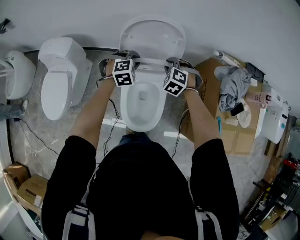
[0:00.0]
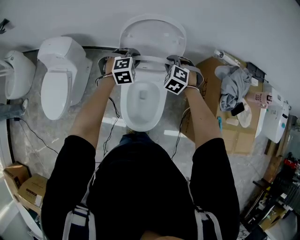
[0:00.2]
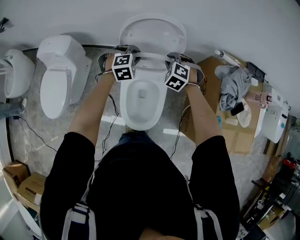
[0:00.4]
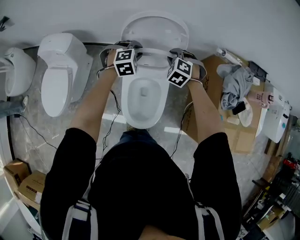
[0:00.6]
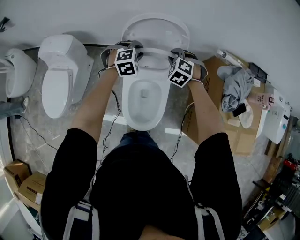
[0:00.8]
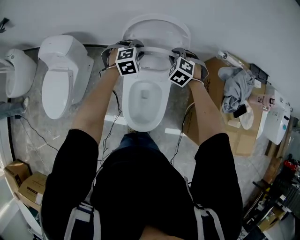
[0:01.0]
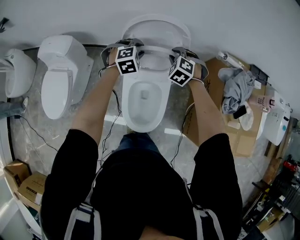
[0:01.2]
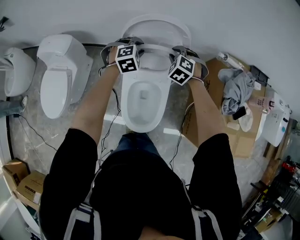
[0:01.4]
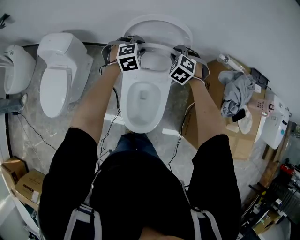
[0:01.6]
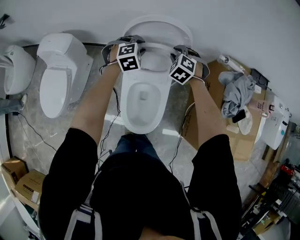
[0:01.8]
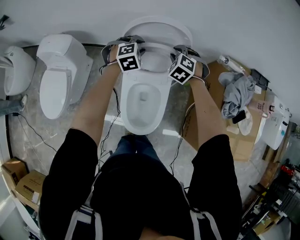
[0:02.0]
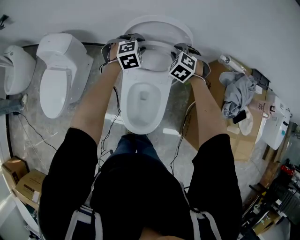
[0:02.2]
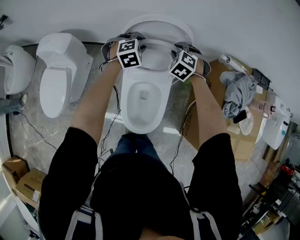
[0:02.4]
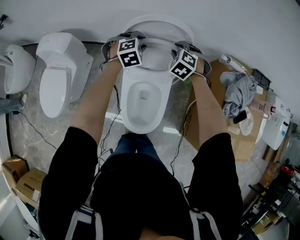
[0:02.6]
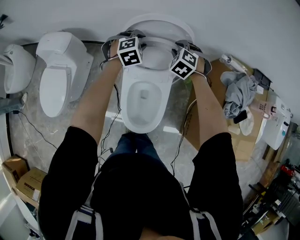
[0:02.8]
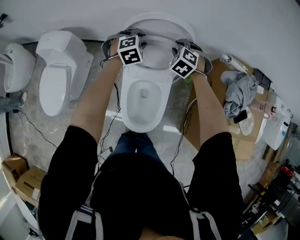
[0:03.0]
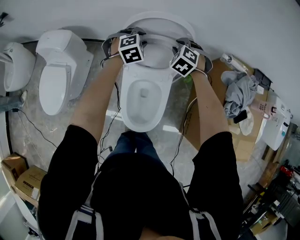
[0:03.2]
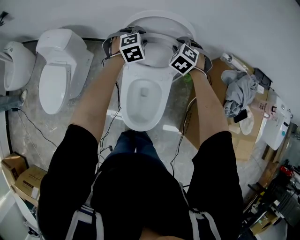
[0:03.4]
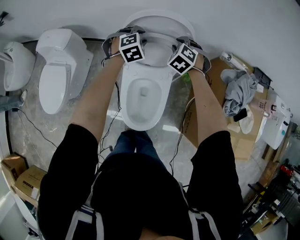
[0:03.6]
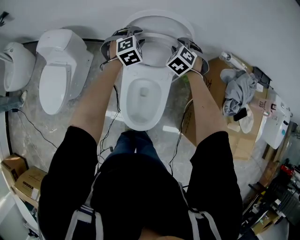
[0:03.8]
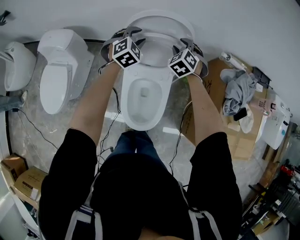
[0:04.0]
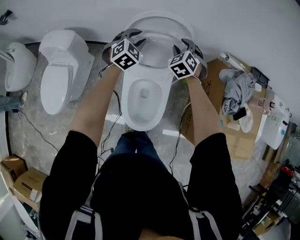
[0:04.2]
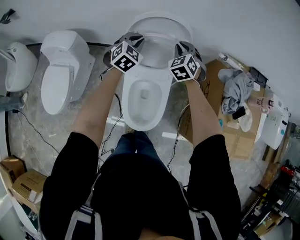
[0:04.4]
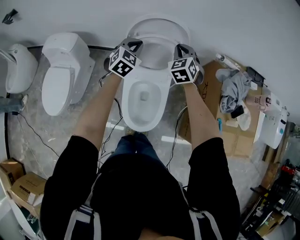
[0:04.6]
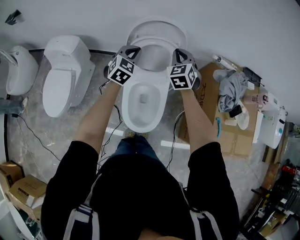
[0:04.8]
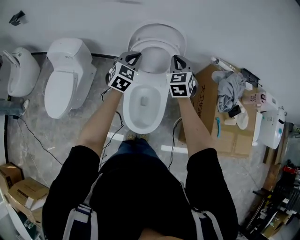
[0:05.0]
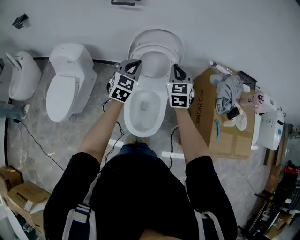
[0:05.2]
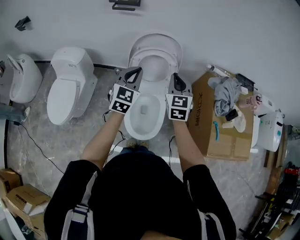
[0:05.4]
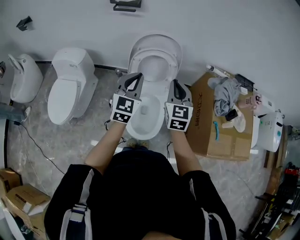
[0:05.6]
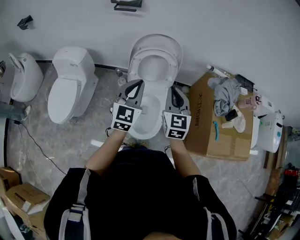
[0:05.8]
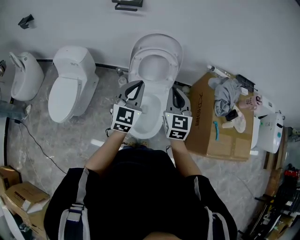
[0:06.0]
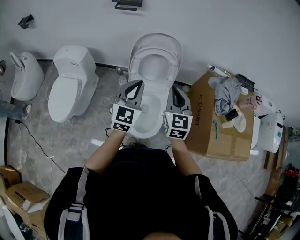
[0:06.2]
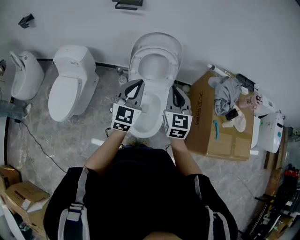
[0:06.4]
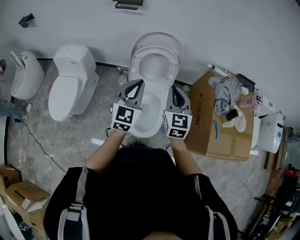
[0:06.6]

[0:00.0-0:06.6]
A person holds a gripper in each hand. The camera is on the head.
0:00.0 to 0:01.6: Both grippers move forward, approximately 10 cm.
0:01.6 to 0:03.2: The grippers move only a little.
0:03.2 to 0:05.0: The grippers both shift backward and upward by approximately 20 cm. The right gripper angles its fingers upward, by roughly 30 degrees, and closes up. The left gripper tilts its fingers roughly 30 degrees upward, and closes.
0:05.0 to 0:06.6: The left gripper moves backward and upward, some 20 cm. Meanwhile the right gripper travels backward by some 15 cm, and swivels some 20 degrees.

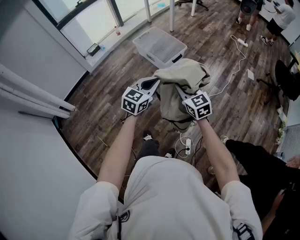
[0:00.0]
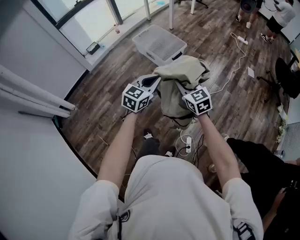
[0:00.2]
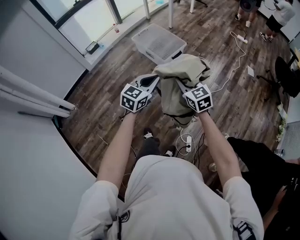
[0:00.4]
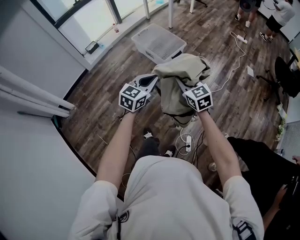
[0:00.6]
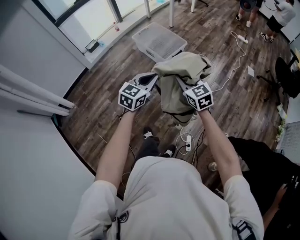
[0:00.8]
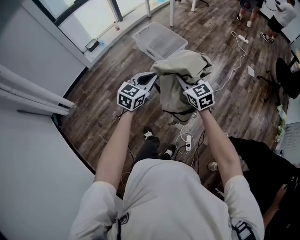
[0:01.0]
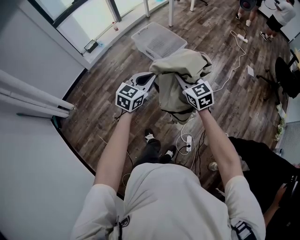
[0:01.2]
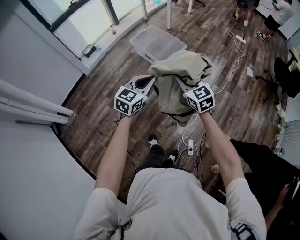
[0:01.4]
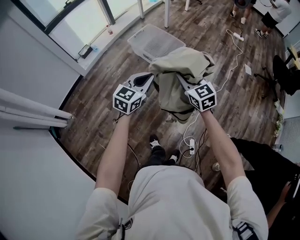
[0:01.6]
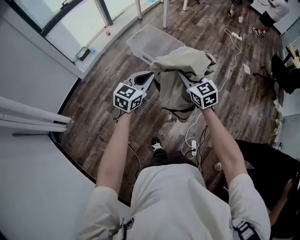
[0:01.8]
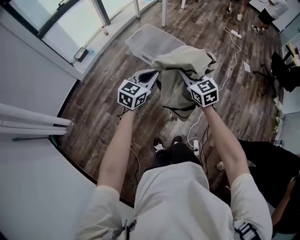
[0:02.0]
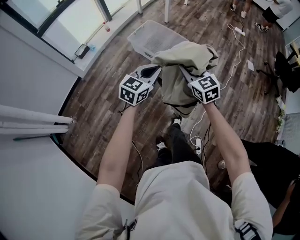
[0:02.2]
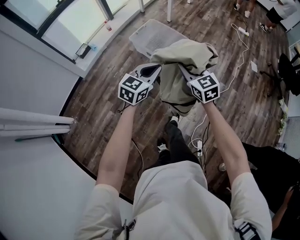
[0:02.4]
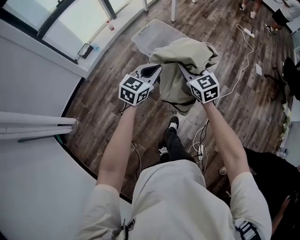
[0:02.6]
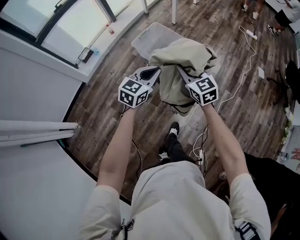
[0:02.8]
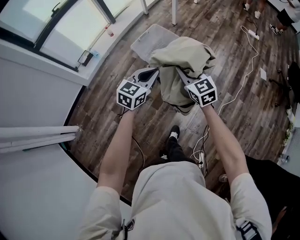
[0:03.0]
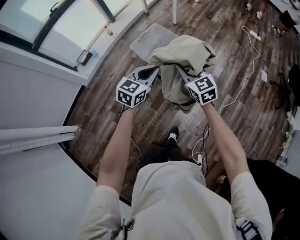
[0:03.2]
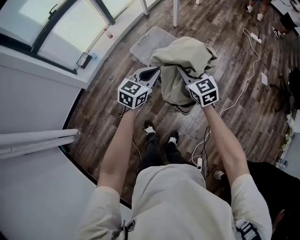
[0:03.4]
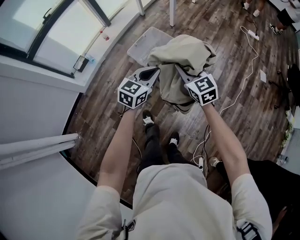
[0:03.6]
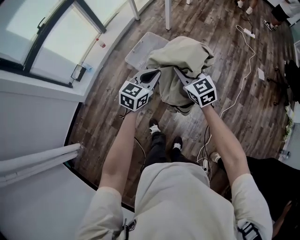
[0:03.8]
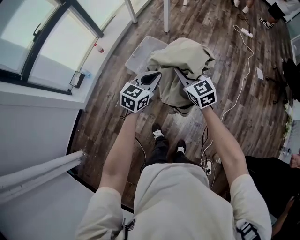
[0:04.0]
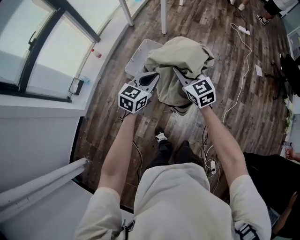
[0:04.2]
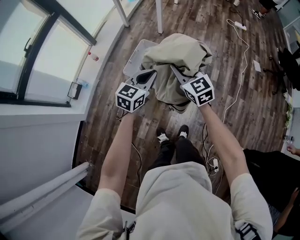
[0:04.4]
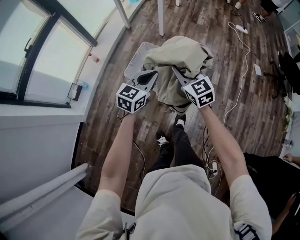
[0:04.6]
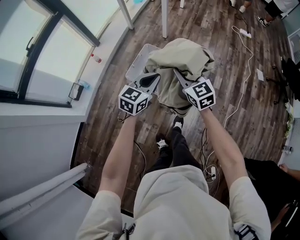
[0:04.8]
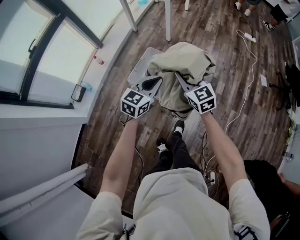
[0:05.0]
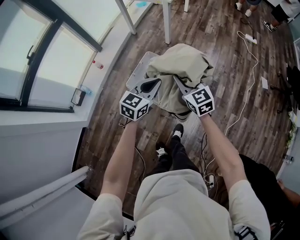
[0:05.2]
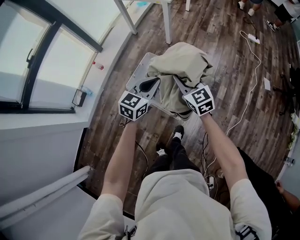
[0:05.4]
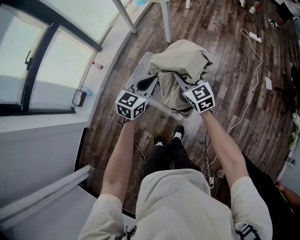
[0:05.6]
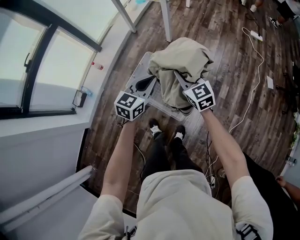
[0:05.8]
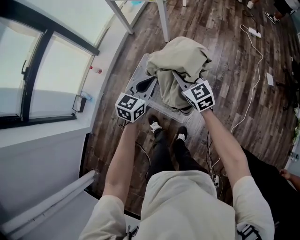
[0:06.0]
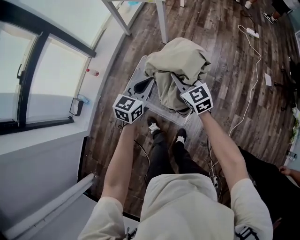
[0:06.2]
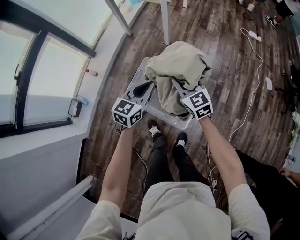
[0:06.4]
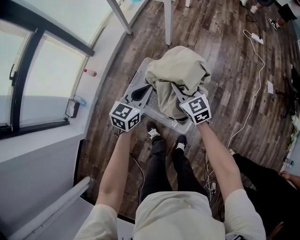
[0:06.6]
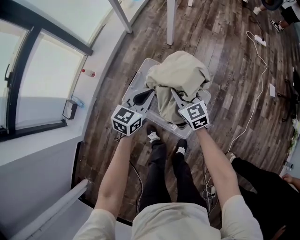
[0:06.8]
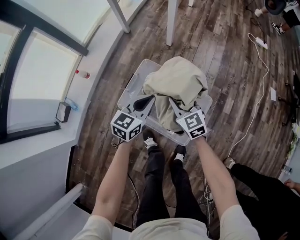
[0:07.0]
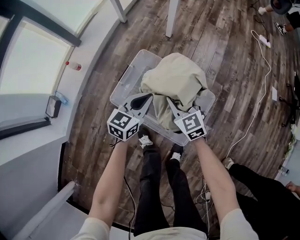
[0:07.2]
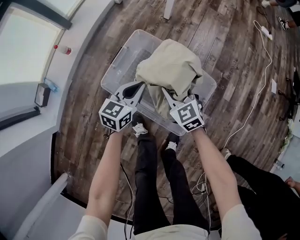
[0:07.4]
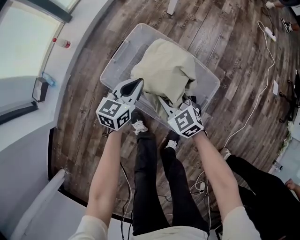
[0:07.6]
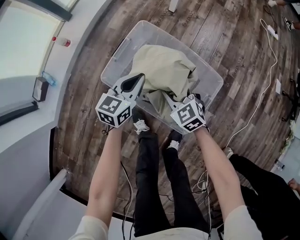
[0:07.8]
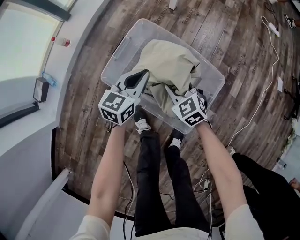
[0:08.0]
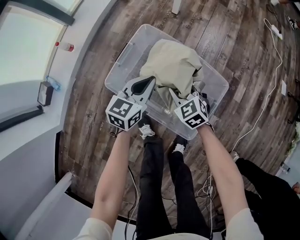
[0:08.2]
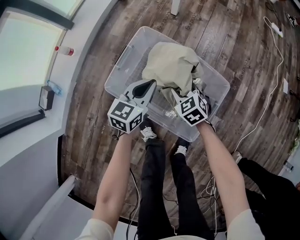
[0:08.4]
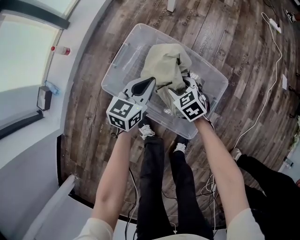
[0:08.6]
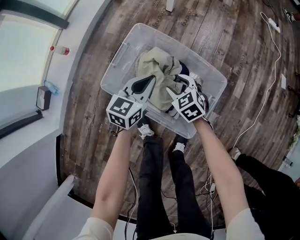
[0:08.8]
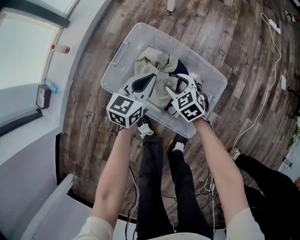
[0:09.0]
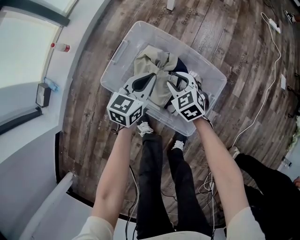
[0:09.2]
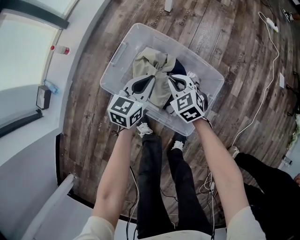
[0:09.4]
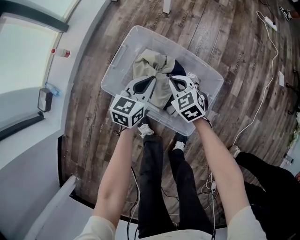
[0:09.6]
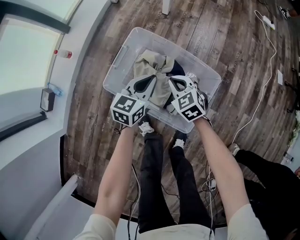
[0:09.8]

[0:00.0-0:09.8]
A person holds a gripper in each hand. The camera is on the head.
0:00.0 to 0:01.4: The right gripper travels forward by approximately 10 cm; the left gripper travels to the left and forward by approximately 10 cm.
0:01.4 to 0:02.8: The grippers both shift forward by approximately 25 cm.
0:02.8 to 0:04.2: Both grippers travel together forward, about 25 cm.
0:04.2 to 0:05.6: Both grippers travel together forward, roughly 20 cm.
0:05.6 to 0:07.0: The right gripper travels downward and to the left by about 25 cm, while the left gripper travels downward and forward by about 25 cm.
0:07.0 to 0:08.4: The grippers both shift downward by roughly 20 cm. The right gripper rotates approximately 30 degrees.
0:08.4 to 0:09.8: The right gripper travels upward by approximately 5 cm, and opens, then closes once more.

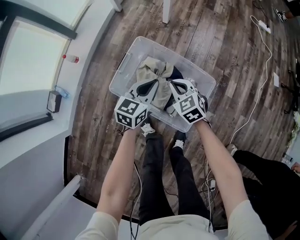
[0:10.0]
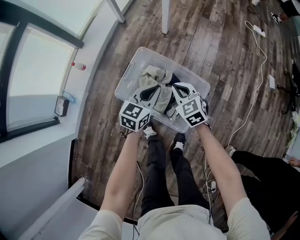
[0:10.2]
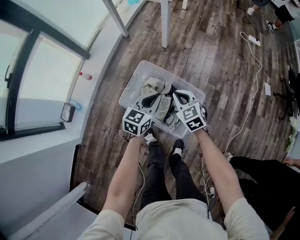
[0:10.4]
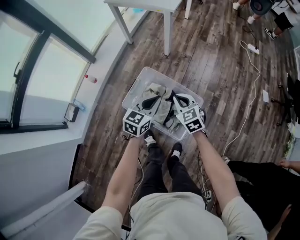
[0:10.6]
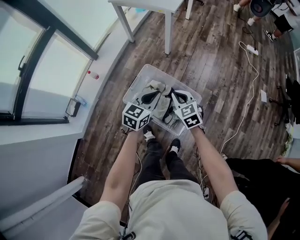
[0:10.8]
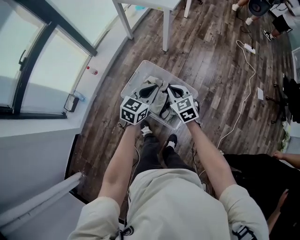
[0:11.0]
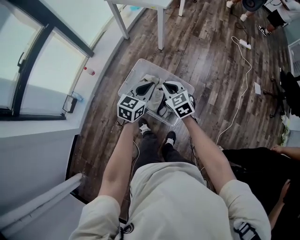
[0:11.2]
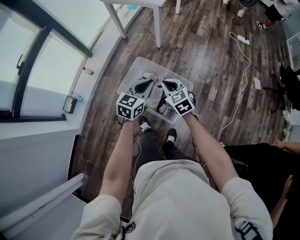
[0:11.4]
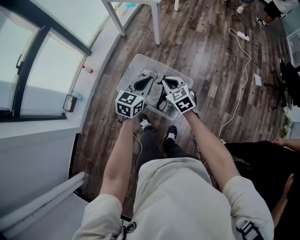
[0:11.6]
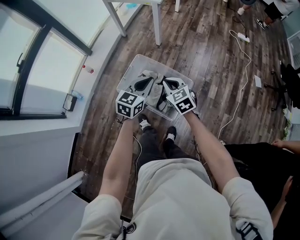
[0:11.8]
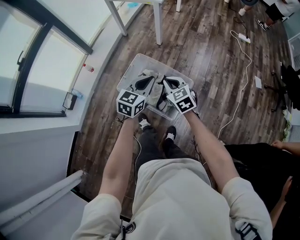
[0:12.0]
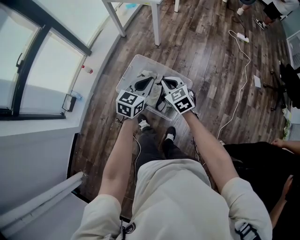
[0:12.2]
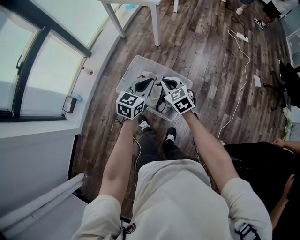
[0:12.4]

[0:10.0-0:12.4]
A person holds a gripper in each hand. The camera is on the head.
0:10.0 to 0:11.2: The two grippers go roughly 25 cm upward.
0:11.2 to 0:12.4: There are only small adjustments of the grippers.

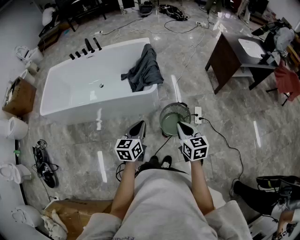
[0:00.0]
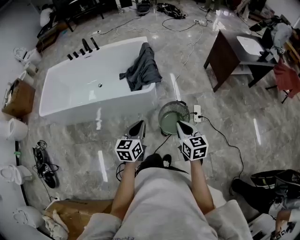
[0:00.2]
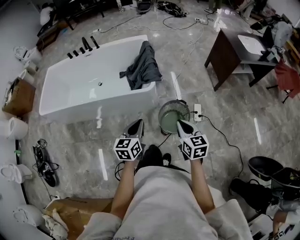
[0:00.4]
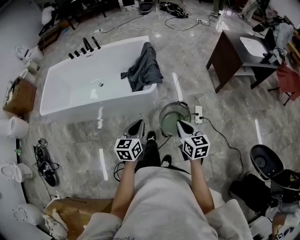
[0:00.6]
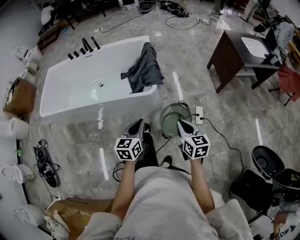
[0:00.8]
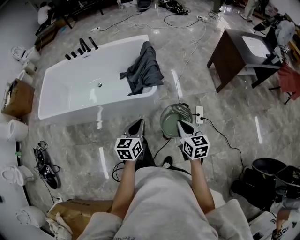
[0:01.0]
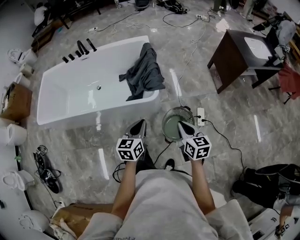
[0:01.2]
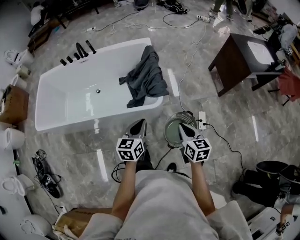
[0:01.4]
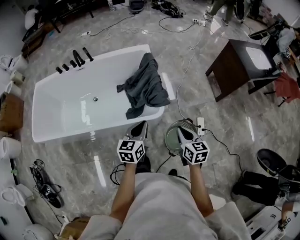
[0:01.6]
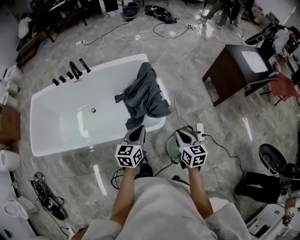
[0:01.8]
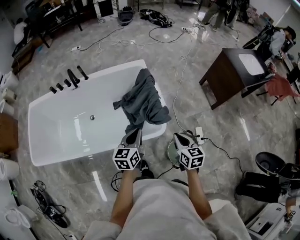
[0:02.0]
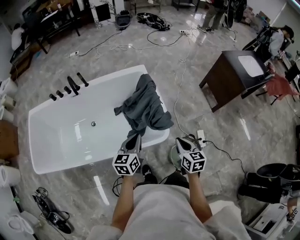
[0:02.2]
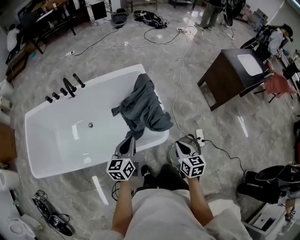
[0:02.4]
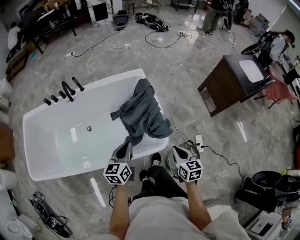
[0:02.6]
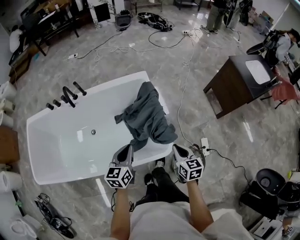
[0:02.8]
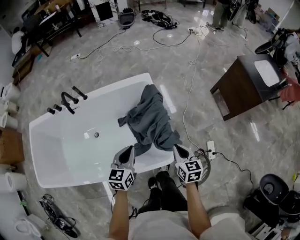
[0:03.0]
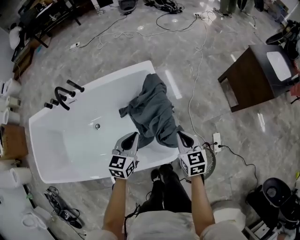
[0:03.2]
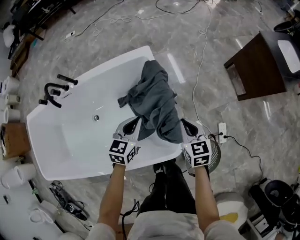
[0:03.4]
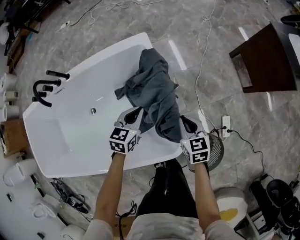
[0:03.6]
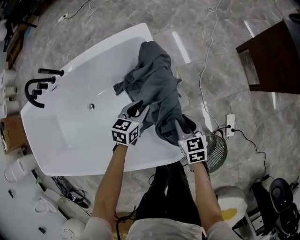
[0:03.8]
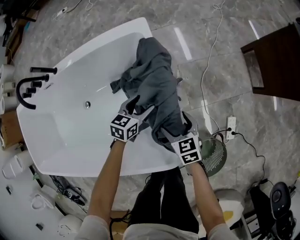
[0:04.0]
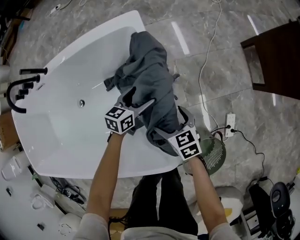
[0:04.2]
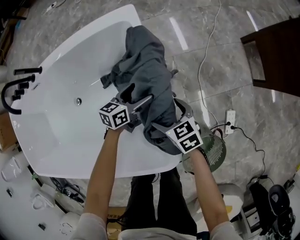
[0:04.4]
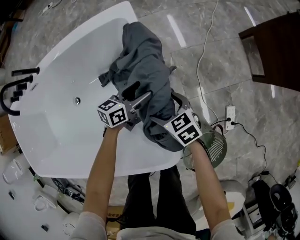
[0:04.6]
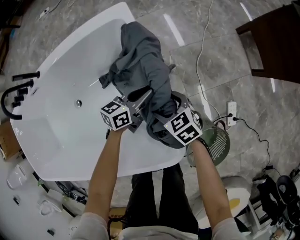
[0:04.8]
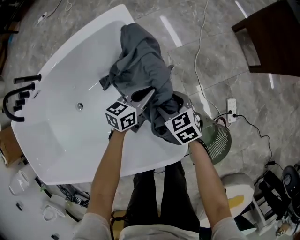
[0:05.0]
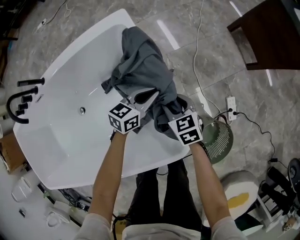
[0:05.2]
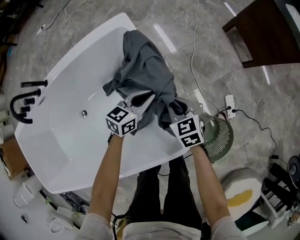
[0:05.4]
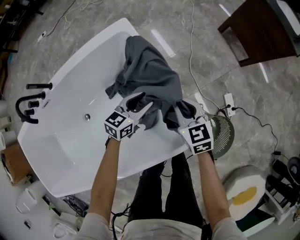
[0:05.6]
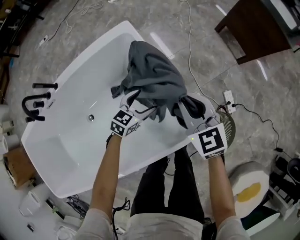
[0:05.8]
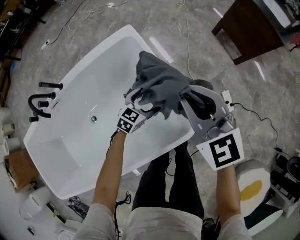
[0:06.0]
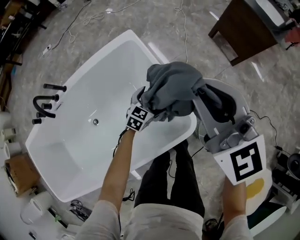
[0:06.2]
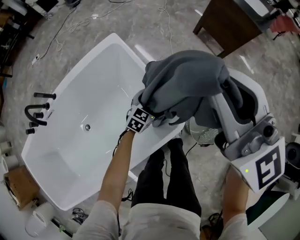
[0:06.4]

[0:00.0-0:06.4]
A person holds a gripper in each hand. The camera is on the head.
0:00.0 to 0:01.6: Both grippers travel together forward, roughly 25 cm.
0:01.6 to 0:03.2: Both grippers travel together forward, some 30 cm.
0:03.2 to 0:04.8: The left gripper heads downward and forward, covering approximately 35 cm, changes its angle by approximately 40 degrees, and opens and closes again. The right gripper moves downward, approximately 30 cm, rotates approximately 30 degrees, and opens up.
0:04.8 to 0:06.4: The left gripper moves about 20 cm, rolls clockwise, seen from behind, by some 40 degrees, and opens up; the right gripper goes approximately 60 cm upward, angles its fingers upward, by approximately 50 degrees, and closes.
